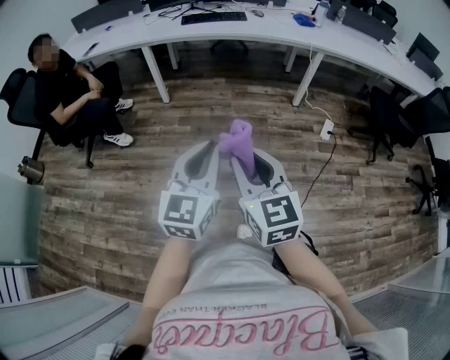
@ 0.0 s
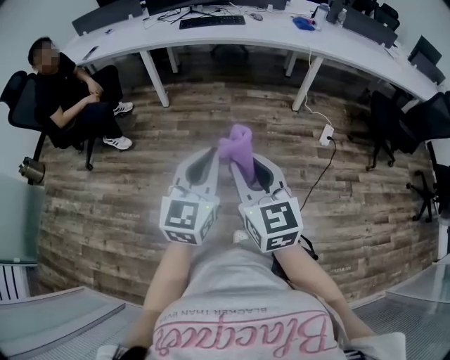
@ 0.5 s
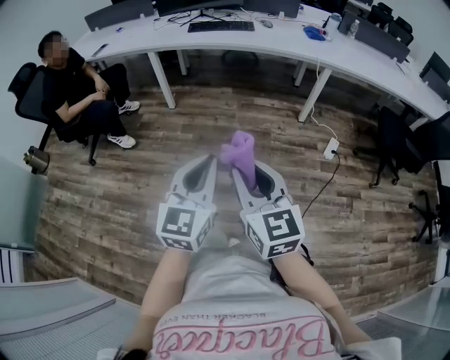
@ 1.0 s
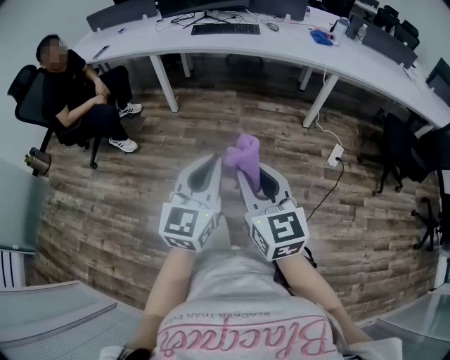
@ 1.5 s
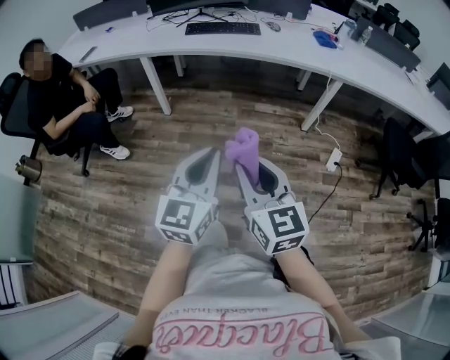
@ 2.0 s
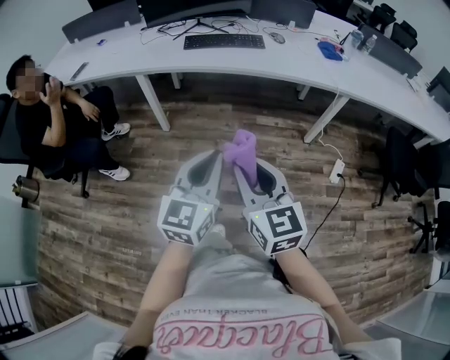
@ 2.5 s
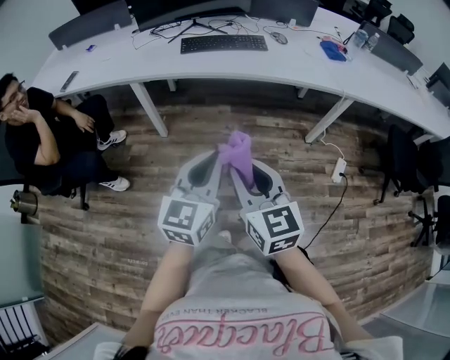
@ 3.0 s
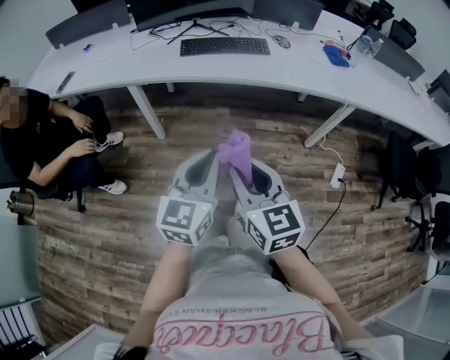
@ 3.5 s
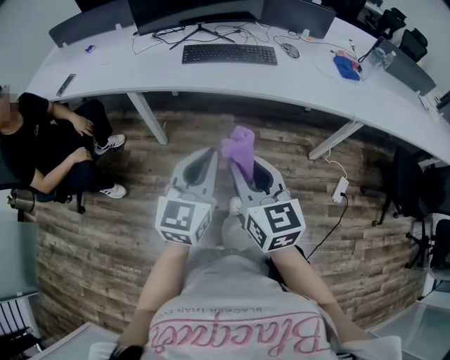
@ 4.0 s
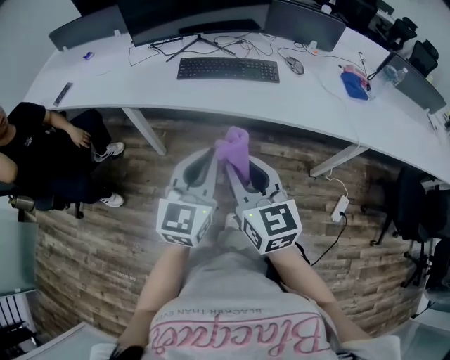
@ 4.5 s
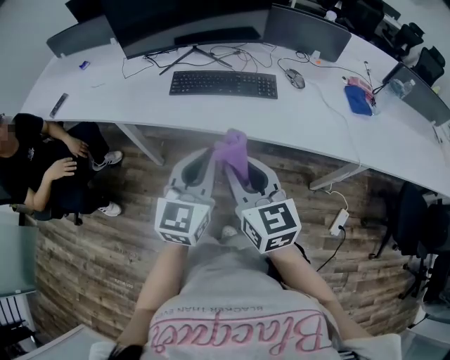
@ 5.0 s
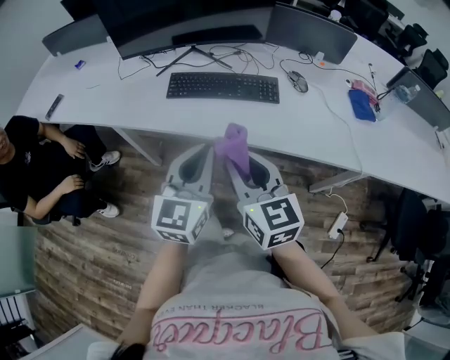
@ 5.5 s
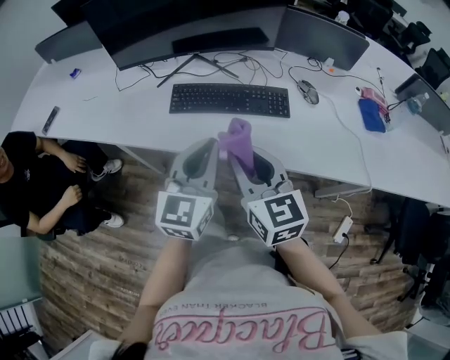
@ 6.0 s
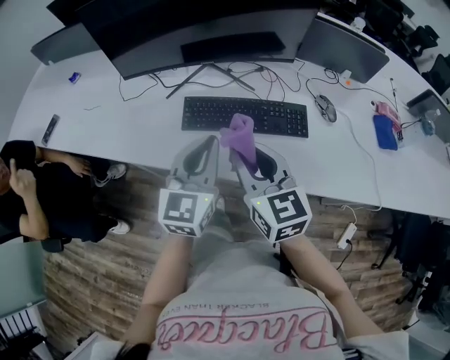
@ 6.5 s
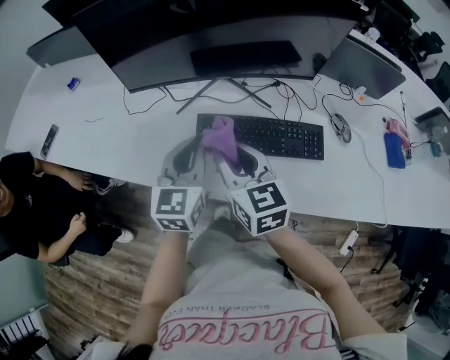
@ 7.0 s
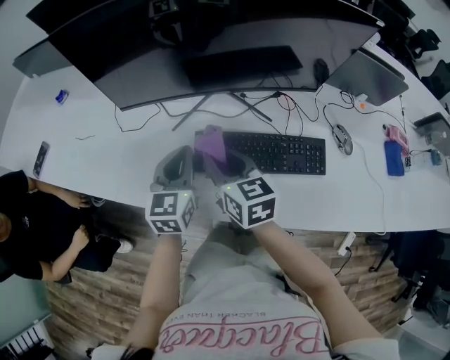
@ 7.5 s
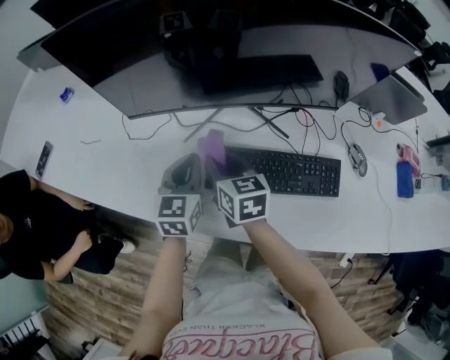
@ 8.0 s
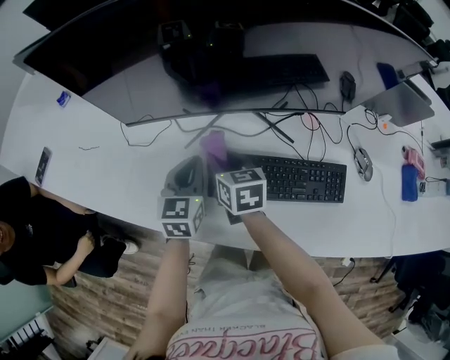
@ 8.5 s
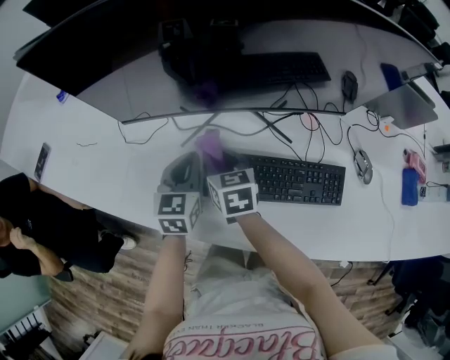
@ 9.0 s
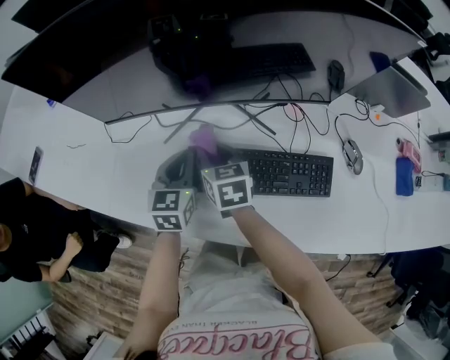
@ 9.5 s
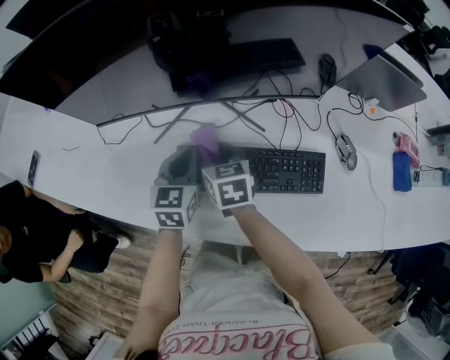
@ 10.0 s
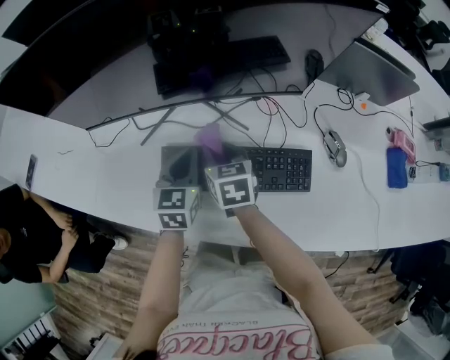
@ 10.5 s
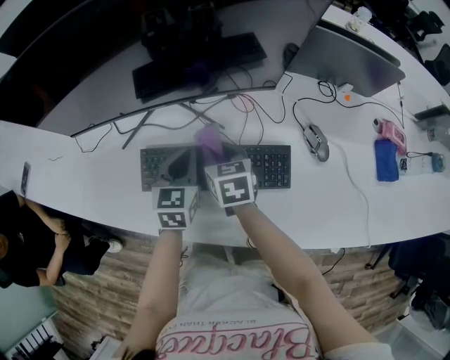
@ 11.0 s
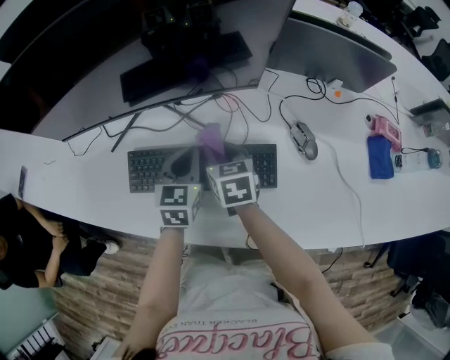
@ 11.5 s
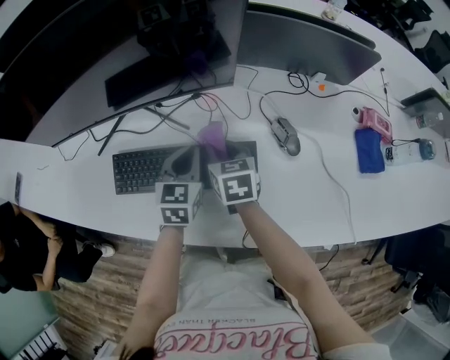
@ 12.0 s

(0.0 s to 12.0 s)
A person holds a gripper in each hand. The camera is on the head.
0.0 s - 2.0 s: Both grippers travel together forward, approximately 25 cm.
2.0 s - 4.0 s: Both grippers travel together forward, some 35 cm.
4.0 s - 6.0 s: Both grippers move forward, approximately 35 cm.
6.0 s - 8.0 s: The grippers both shift forward, to the left and downward by about 40 cm. The left gripper swivels approximately 20 degrees, while the right gripper changes its angle by approximately 20 degrees.
8.0 s - 10.0 s: Both grippers move to the right, approximately 10 cm.
10.0 s - 12.0 s: The grippers both shift to the right by approximately 25 cm.

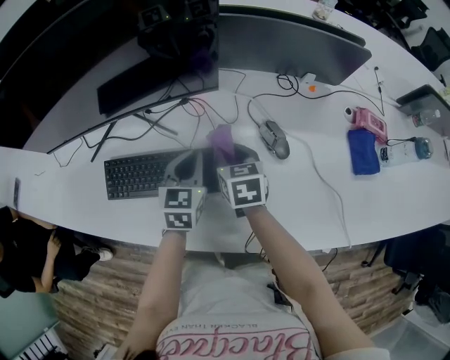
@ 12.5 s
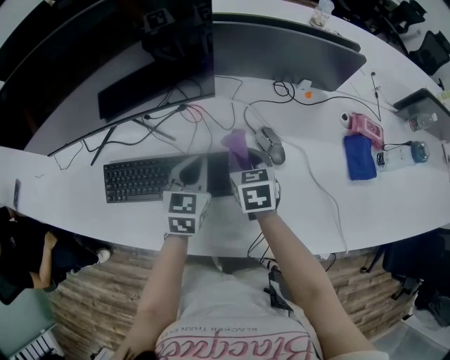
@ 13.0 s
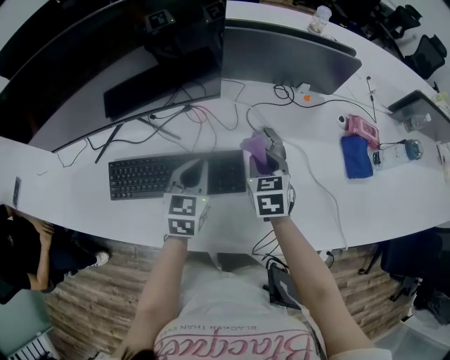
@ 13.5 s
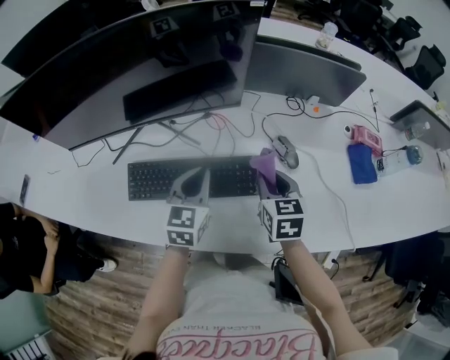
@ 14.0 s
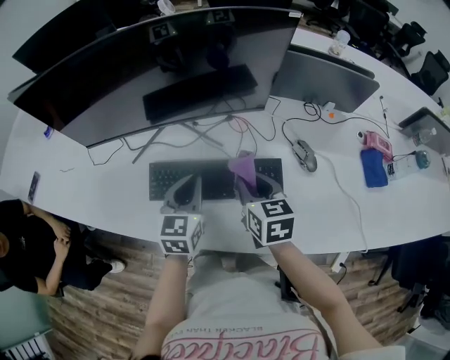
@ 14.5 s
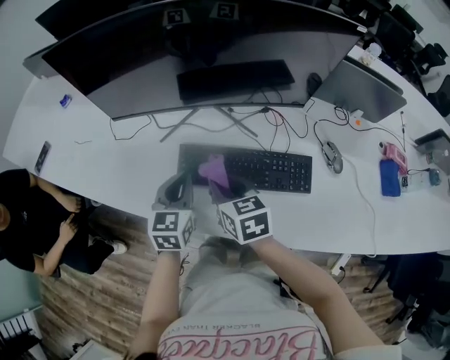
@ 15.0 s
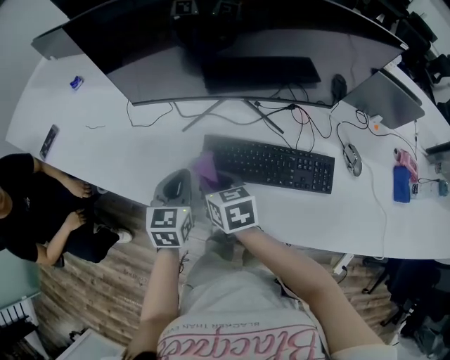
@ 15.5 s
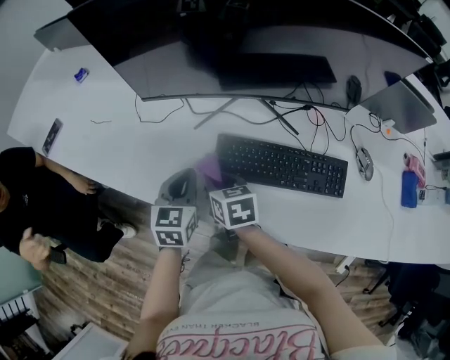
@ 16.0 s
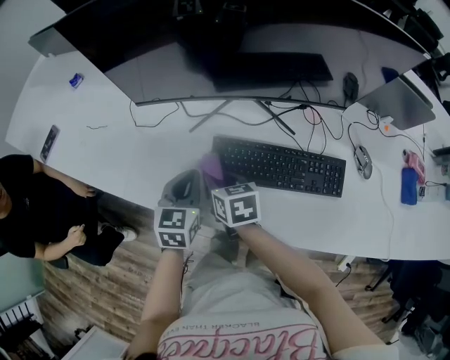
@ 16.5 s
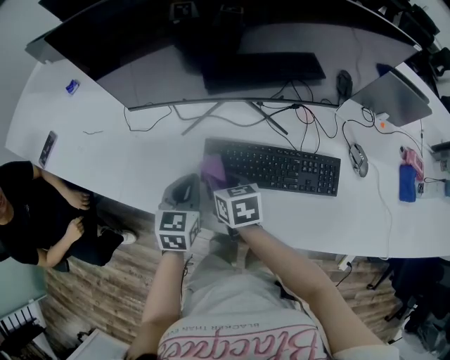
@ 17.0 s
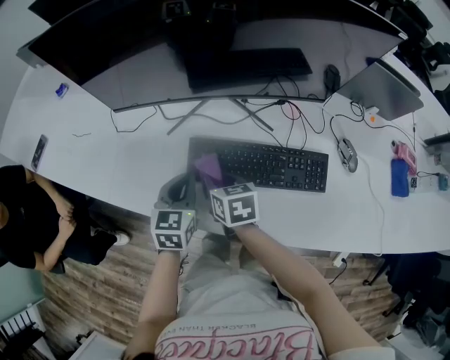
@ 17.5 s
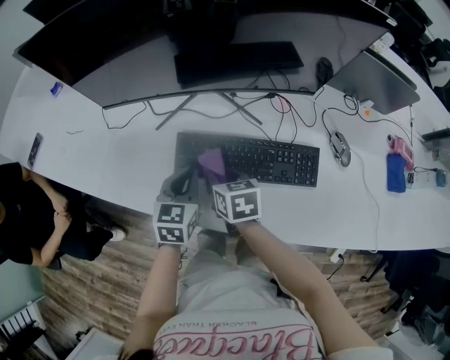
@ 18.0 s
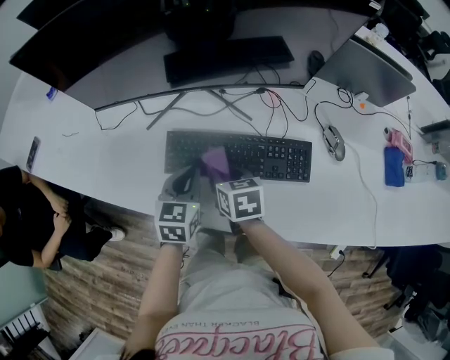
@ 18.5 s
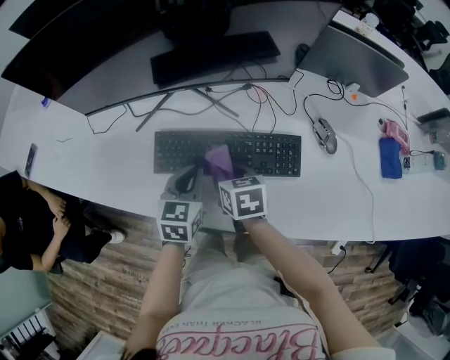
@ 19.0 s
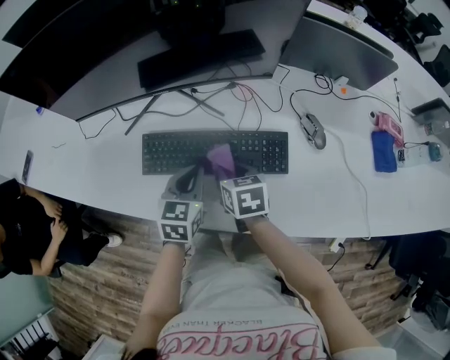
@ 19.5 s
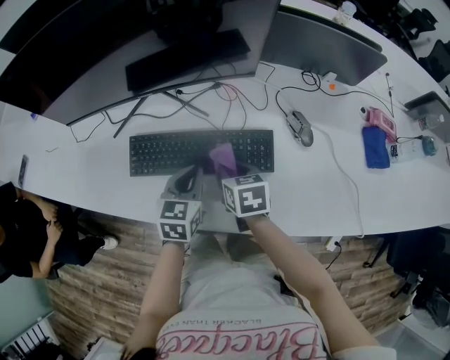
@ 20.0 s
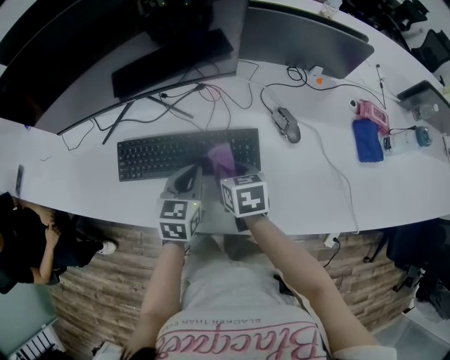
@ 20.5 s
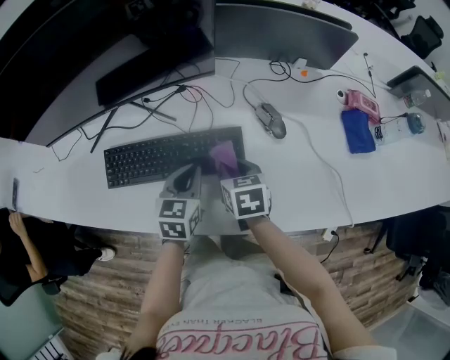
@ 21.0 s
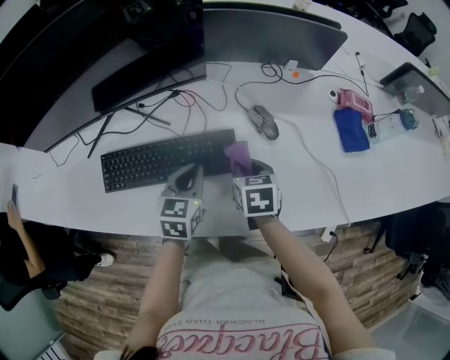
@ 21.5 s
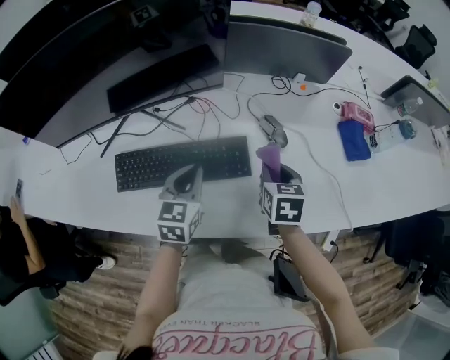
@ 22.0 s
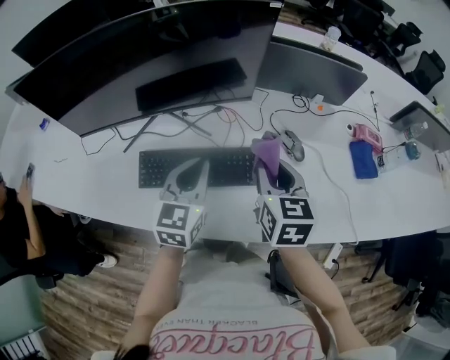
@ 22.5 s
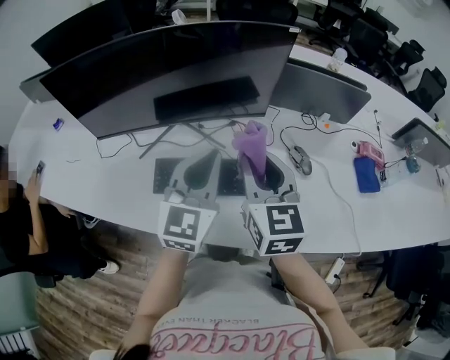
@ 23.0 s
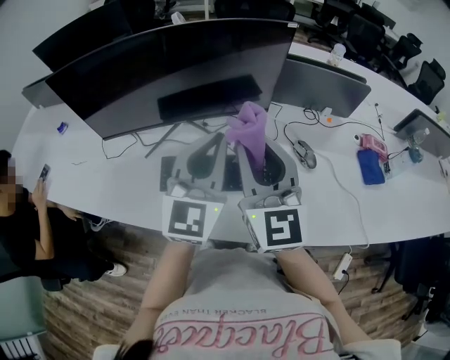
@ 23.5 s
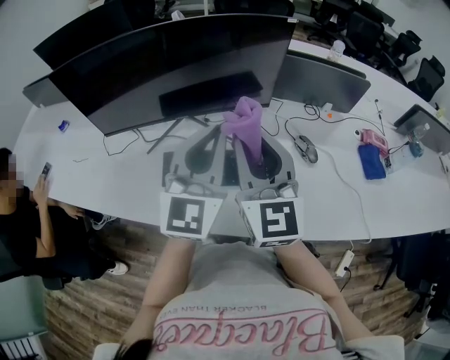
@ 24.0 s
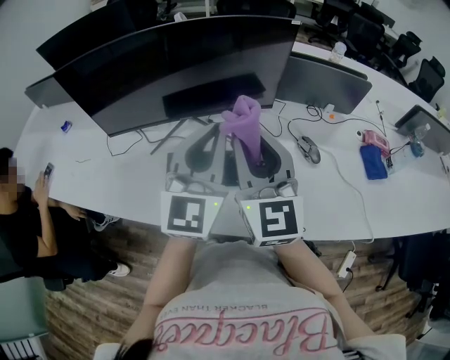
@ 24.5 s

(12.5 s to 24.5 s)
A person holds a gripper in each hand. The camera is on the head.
12.5 s - 14.5 s: The left gripper travels to the left, backward and upward by roughly 15 cm. The right gripper heads upward, to the left and backward, covering approximately 15 cm.
14.5 s - 16.5 s: Both grippers travel together to the left, some 25 cm. The right gripper changes its angle by about 20 degrees.
16.5 s - 18.5 s: The grippers both shift to the right by approximately 15 cm.
18.5 s - 20.5 s: Both grippers move to the right, about 20 cm.
20.5 s - 22.5 s: Both grippers travel together upward, approximately 15 cm. The right gripper changes its angle by some 30 degrees.
22.5 s - 24.5 s: The left gripper goes some 15 cm upward, and swivels about 30 degrees, while the right gripper travels upward and to the left by some 20 cm, and angles its fingers upward, by some 30 degrees.

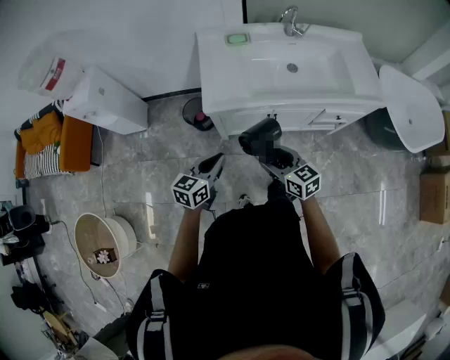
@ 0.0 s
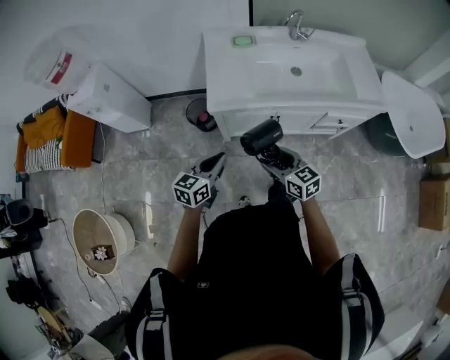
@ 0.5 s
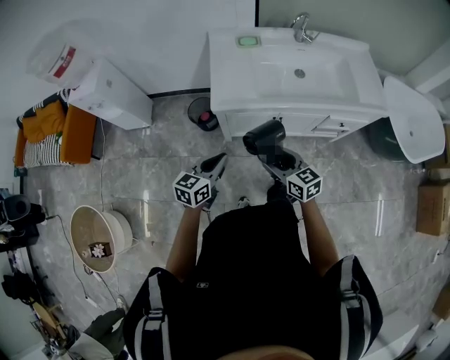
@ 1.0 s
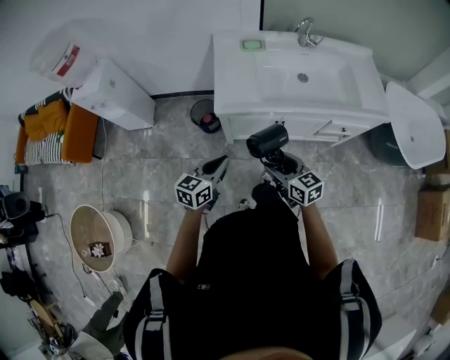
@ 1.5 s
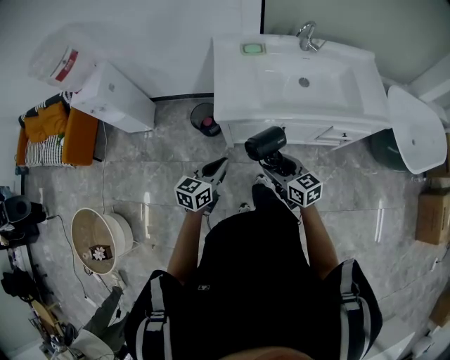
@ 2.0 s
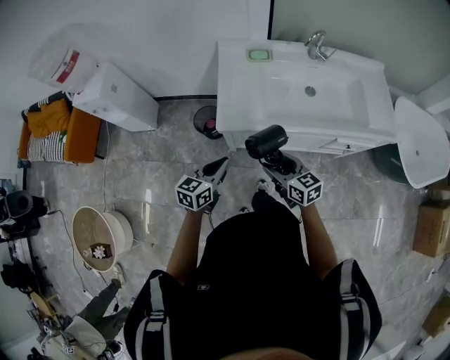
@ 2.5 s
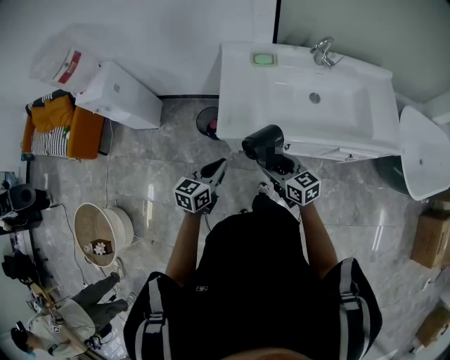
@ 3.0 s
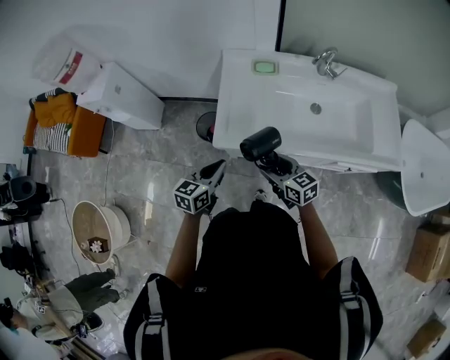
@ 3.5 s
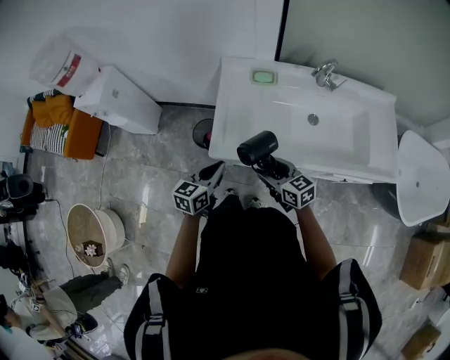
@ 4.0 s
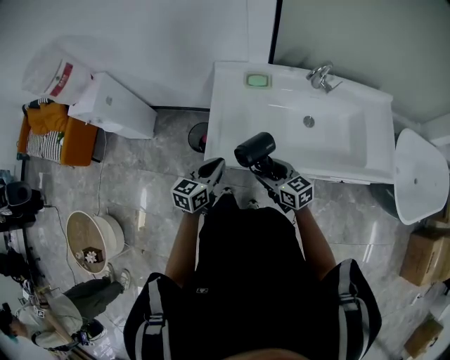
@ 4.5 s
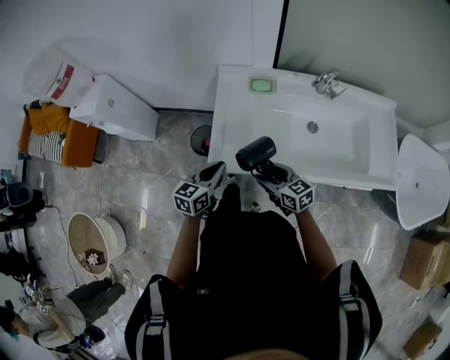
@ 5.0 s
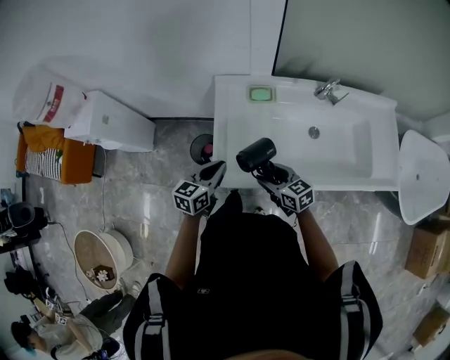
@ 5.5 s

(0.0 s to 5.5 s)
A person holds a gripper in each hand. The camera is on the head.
0.0 s - 2.0 s: The grippers stay close to where they were, moving slightly.
2.0 s - 3.5 s: Both grippers travel together forward, some 15 cm.
3.5 s - 5.5 s: The two grippers go some 15 cm forward.
